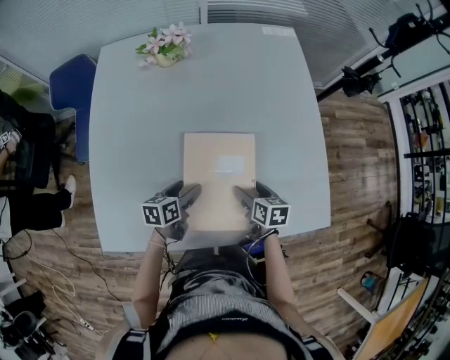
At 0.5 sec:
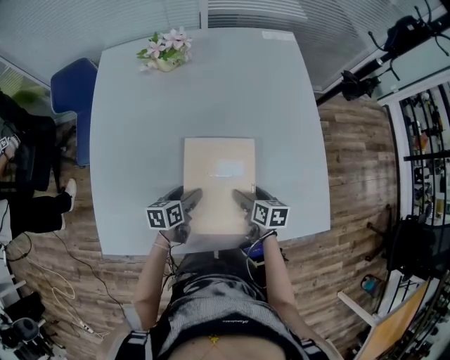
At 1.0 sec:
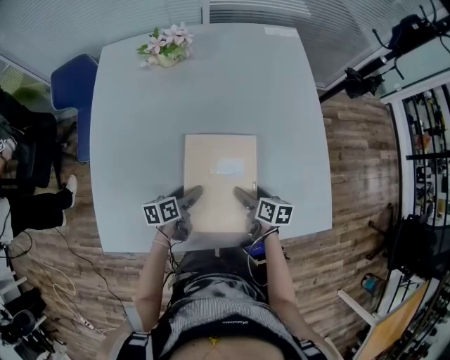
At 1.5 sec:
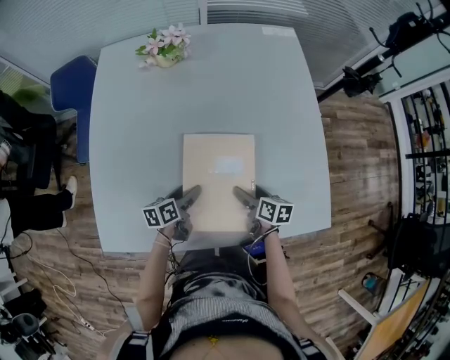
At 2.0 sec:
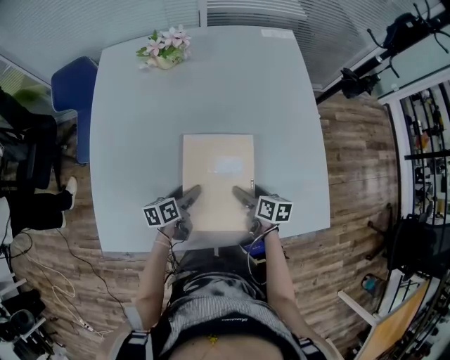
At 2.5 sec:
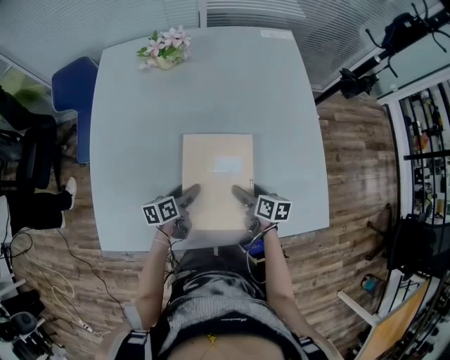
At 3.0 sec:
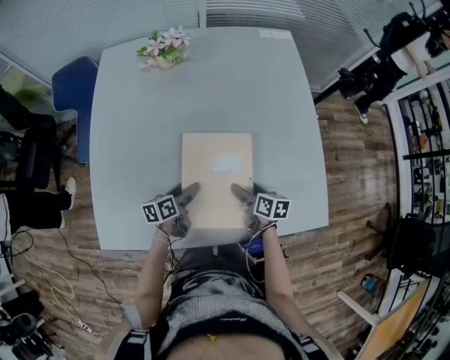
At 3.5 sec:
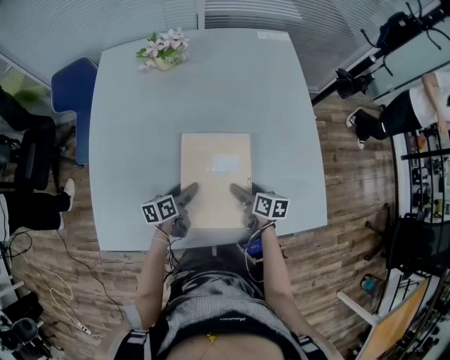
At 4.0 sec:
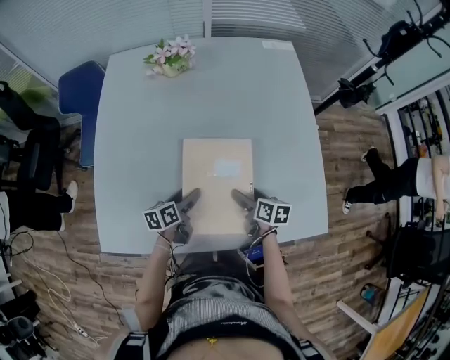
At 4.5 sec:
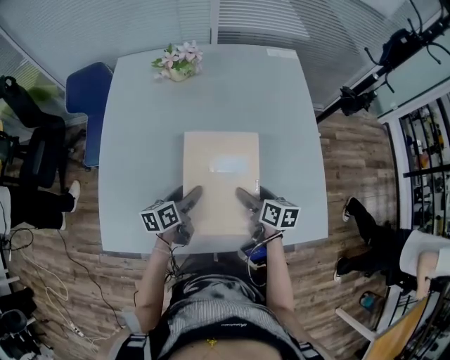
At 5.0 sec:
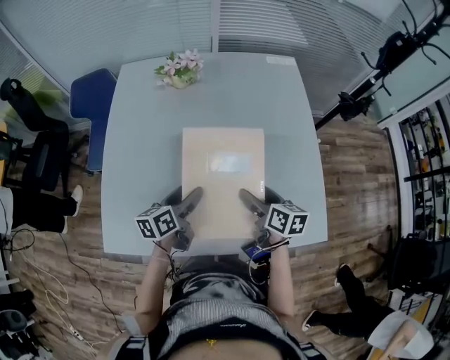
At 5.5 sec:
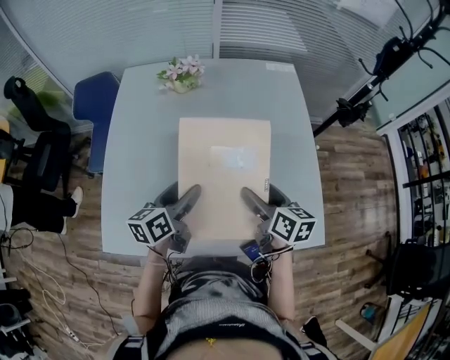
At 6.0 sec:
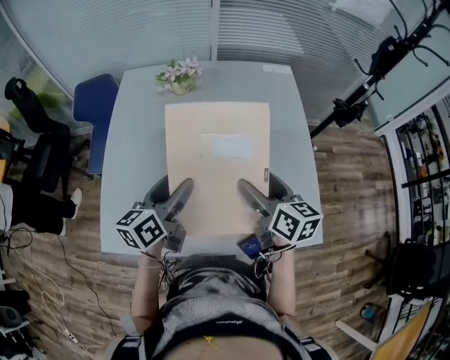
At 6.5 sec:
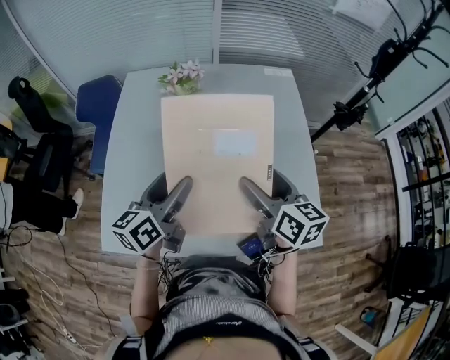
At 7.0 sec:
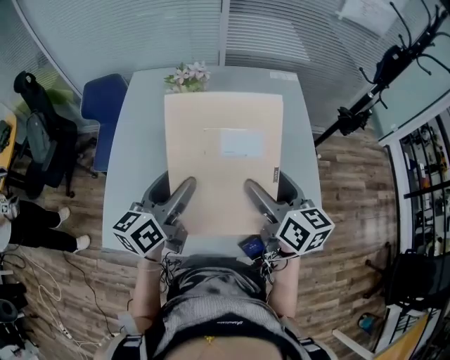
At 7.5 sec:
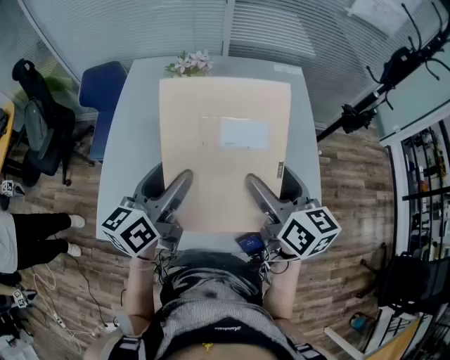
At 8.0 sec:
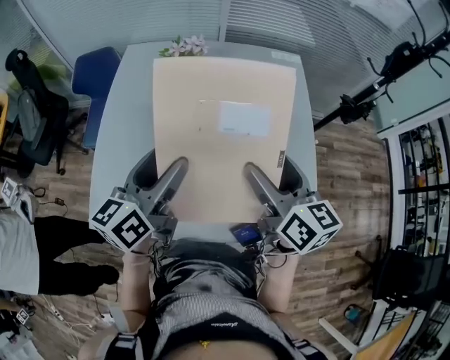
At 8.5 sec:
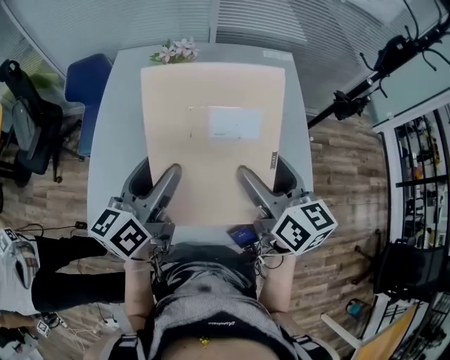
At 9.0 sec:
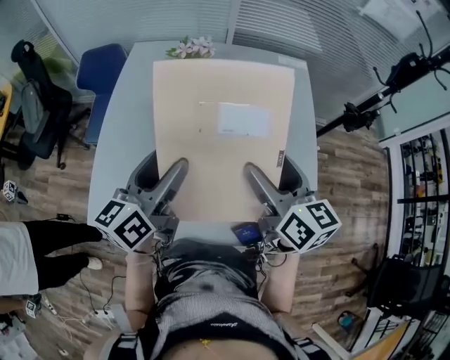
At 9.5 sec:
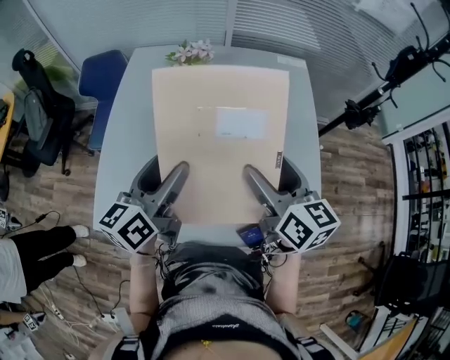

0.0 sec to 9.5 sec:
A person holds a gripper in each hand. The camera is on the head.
0.0 sec to 4.0 sec: The grippers make only small movements.
4.0 sec to 5.5 sec: Both grippers move upward, about 20 cm. The left gripper rotates some 20 degrees.
5.5 sec to 7.5 sec: The grippers both shift upward by about 15 cm.
7.5 sec to 9.5 sec: Both grippers stay put.

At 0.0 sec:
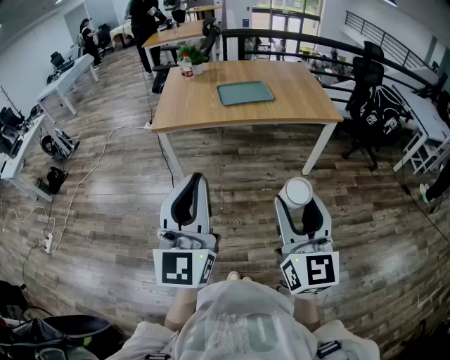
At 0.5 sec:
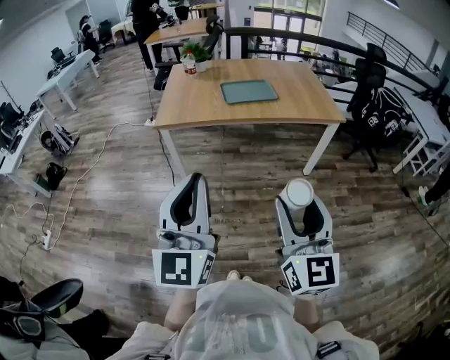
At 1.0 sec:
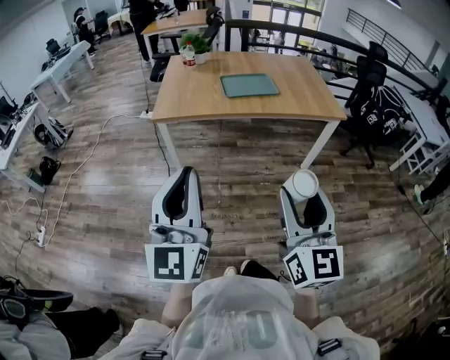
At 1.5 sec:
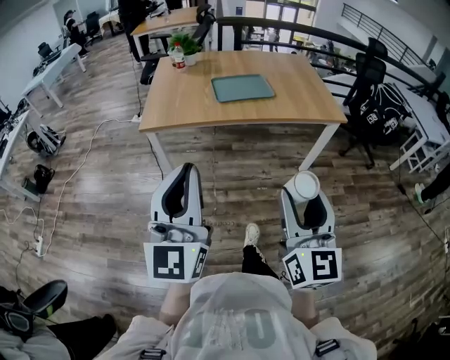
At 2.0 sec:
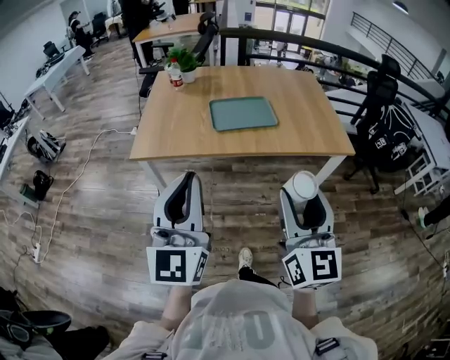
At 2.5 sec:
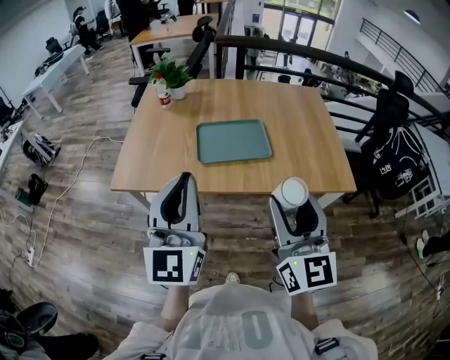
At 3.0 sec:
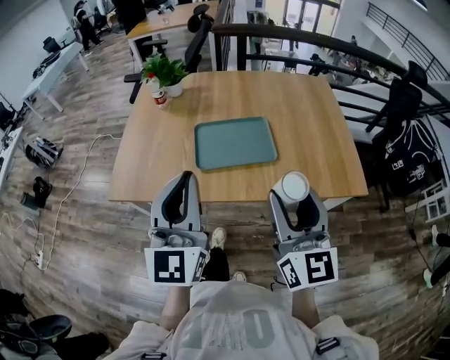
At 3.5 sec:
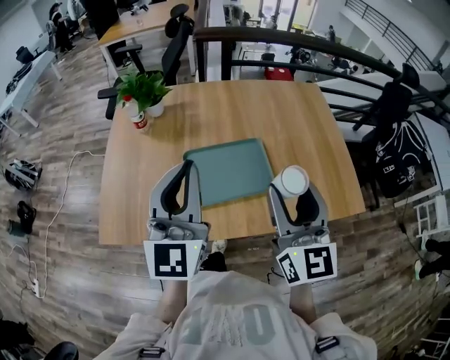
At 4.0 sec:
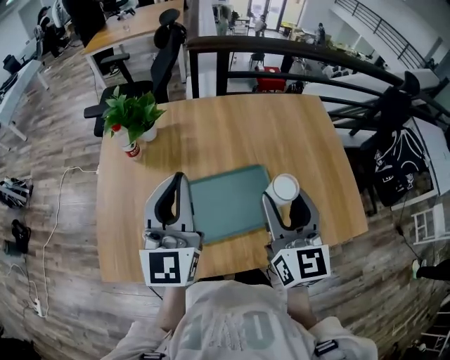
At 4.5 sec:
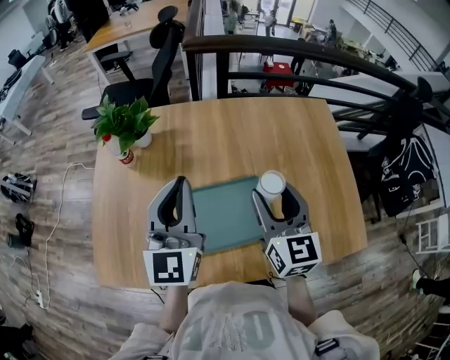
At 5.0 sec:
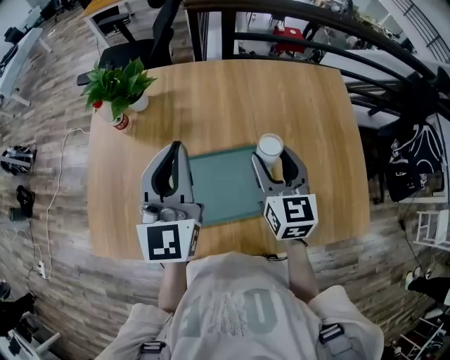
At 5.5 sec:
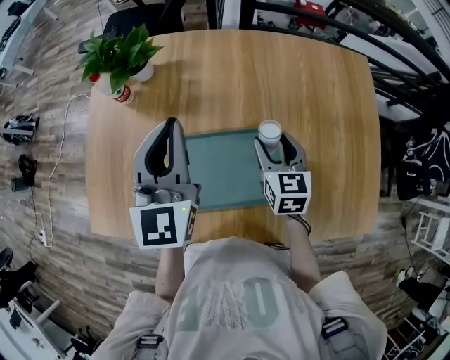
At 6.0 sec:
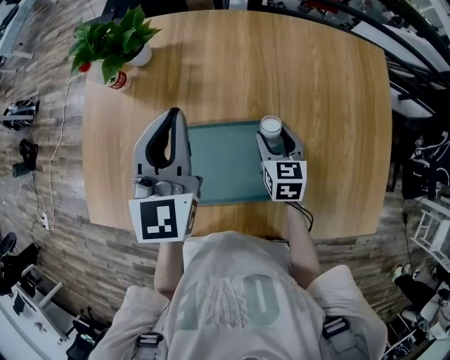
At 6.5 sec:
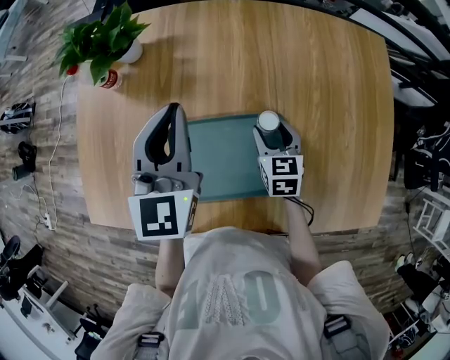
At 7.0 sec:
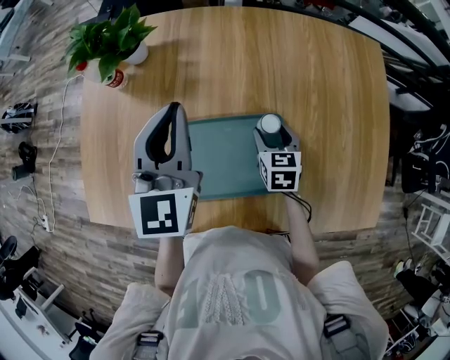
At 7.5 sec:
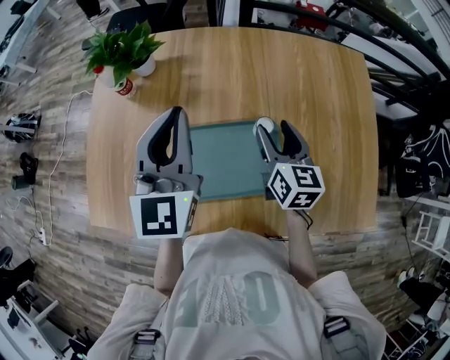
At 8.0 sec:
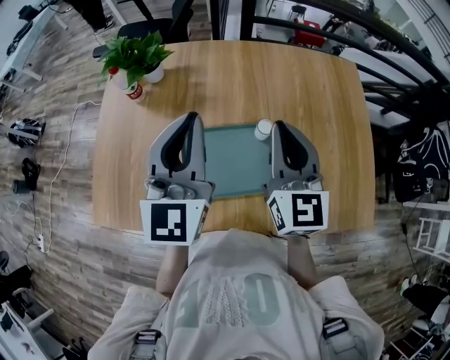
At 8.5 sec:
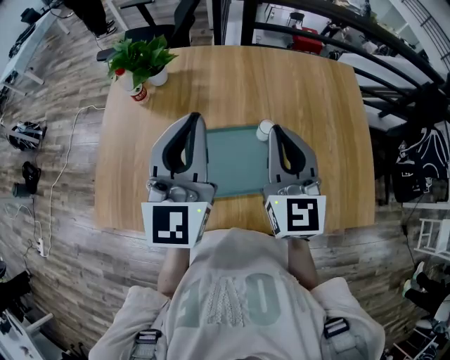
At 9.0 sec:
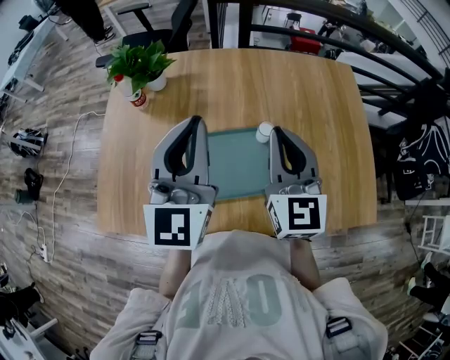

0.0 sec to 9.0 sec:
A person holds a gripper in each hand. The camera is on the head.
0.0 sec to 2.0 sec: Both grippers travel together forward, roughly 30 cm.
2.0 sec to 4.5 sec: The pair of grippers is taken forward, roughly 60 cm.
4.5 sec to 7.0 sec: The right gripper moves downward, approximately 25 cm, and points its fingers approximately 30 degrees further downward. The left gripper heads downward and forward, covering some 10 cm.
7.0 sec to 9.0 sec: The left gripper moves upward and backward, about 15 cm, and changes its angle by roughly 20 degrees, while the right gripper moves upward, some 30 cm, angles its fingers upward, by approximately 40 degrees, and closes.

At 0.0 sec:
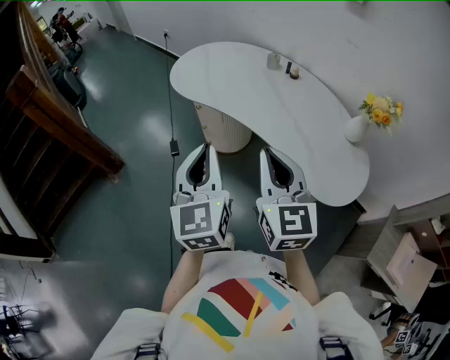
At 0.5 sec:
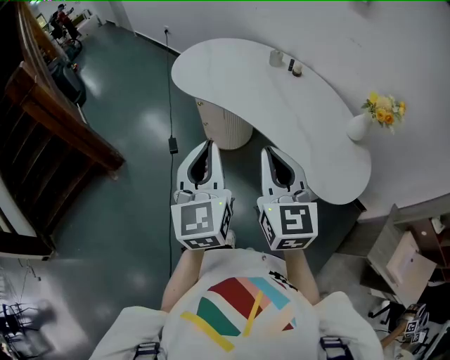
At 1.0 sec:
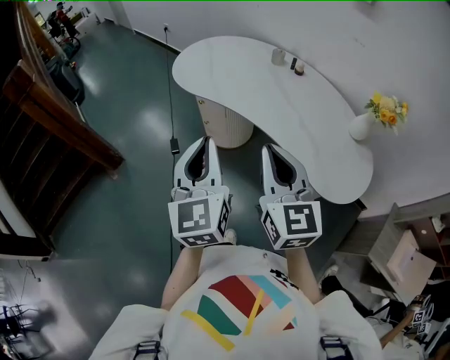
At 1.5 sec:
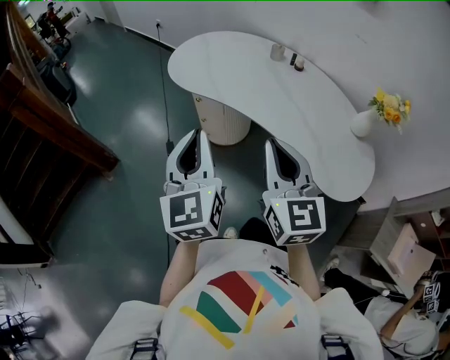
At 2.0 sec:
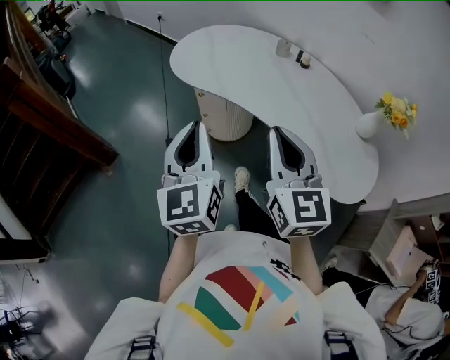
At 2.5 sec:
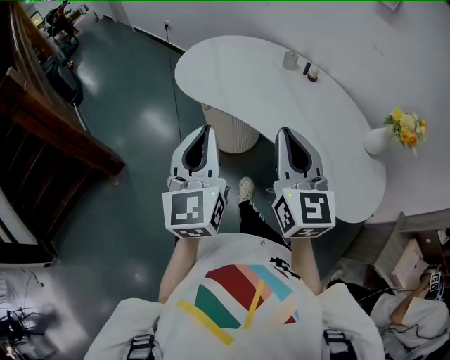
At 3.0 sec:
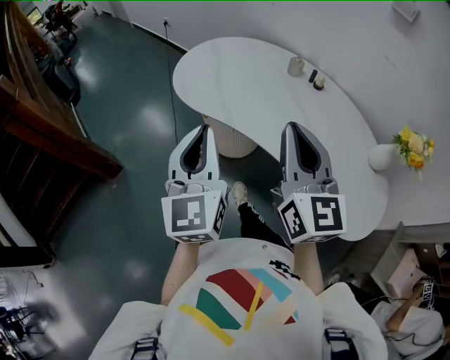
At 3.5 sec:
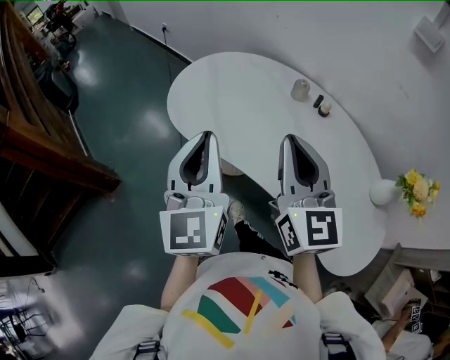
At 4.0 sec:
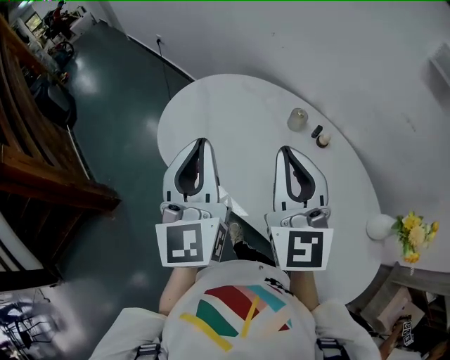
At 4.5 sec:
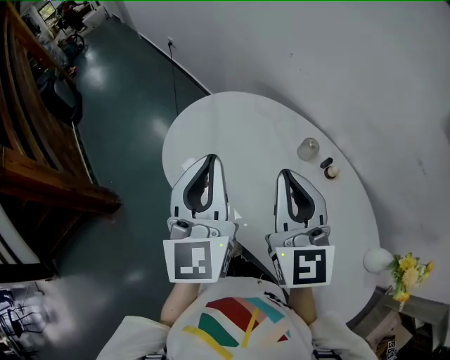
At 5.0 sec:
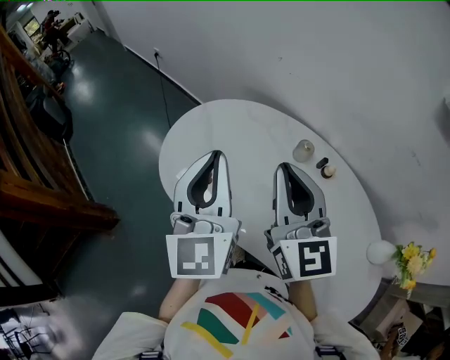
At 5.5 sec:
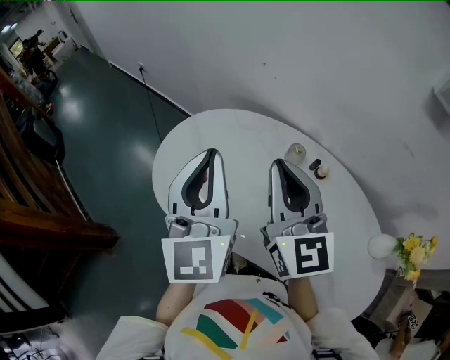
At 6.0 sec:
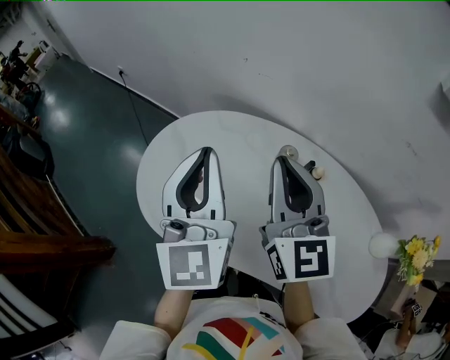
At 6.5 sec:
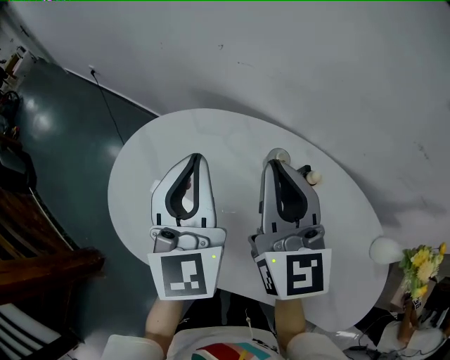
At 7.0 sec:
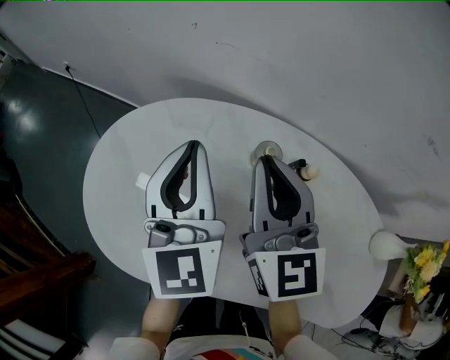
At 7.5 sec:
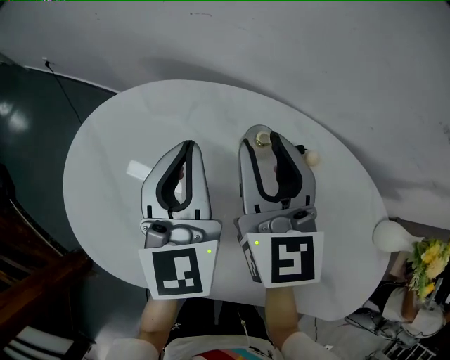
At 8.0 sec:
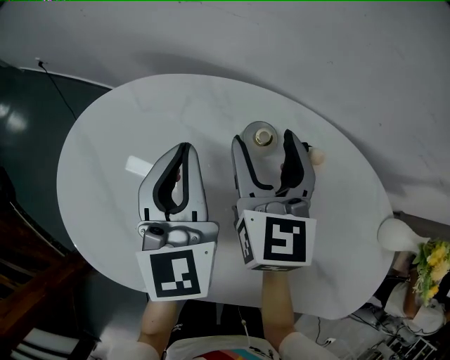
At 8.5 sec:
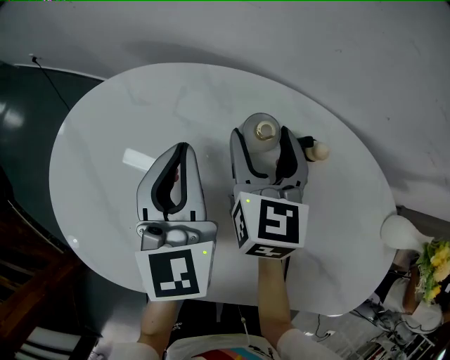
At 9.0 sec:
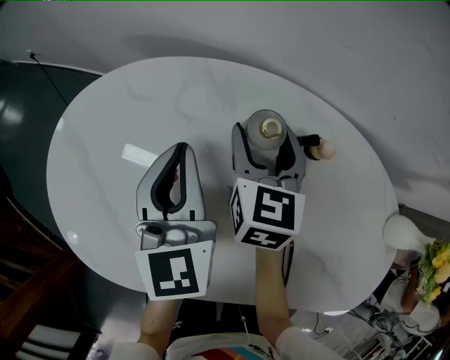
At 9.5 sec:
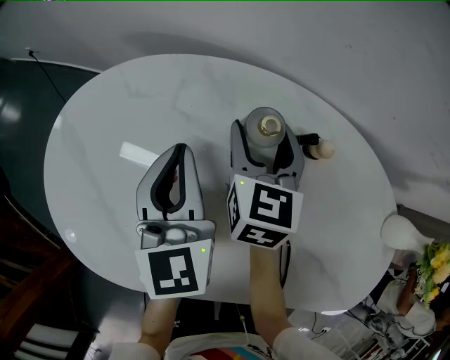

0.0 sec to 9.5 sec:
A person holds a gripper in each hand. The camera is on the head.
0.0 sec to 2.0 sec: The left gripper travels forward and to the left by some 10 cm. Meanwhile the right gripper is displaced forward by about 5 cm.
2.0 sec to 4.0 sec: Both grippers move forward, some 35 cm.
4.0 sec to 5.5 sec: Both grippers travel together forward, about 10 cm.
5.5 sec to 7.5 sec: The grippers both shift downward, forward and to the right by some 30 cm. The right gripper changes its angle by about 20 degrees, and opens up; the left gripper swivels approximately 20 degrees.
7.5 sec to 9.5 sec: The left gripper is displaced downward by about 10 cm. Meanwhile the right gripper moves downward, roughly 15 cm, changes its angle by roughly 20 degrees, and opens.
